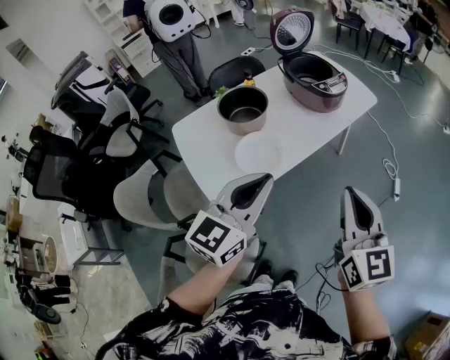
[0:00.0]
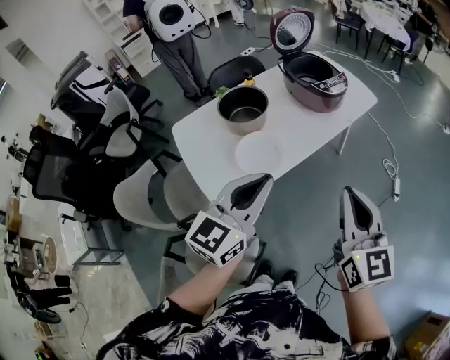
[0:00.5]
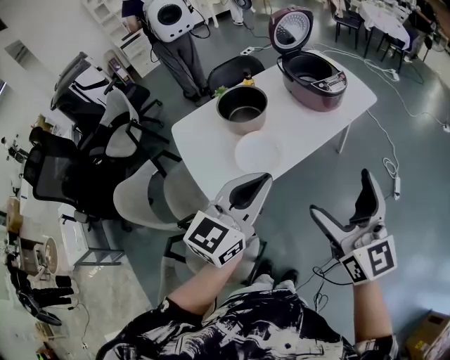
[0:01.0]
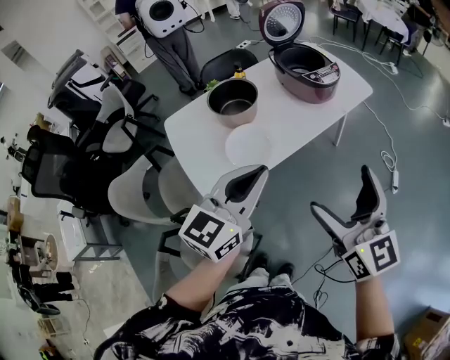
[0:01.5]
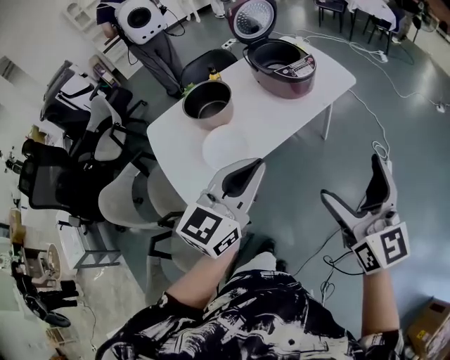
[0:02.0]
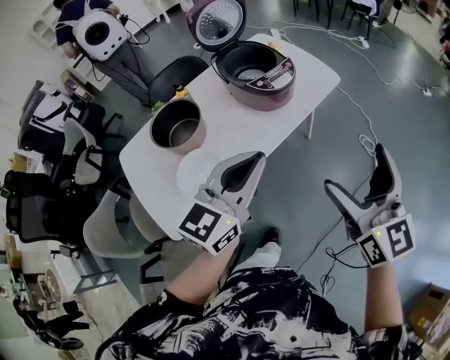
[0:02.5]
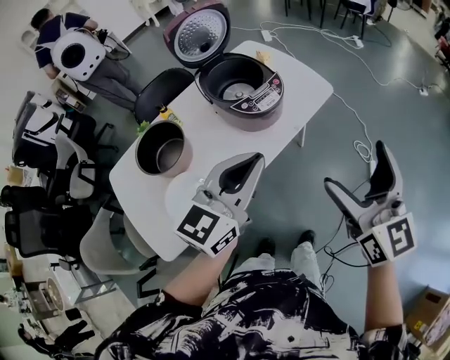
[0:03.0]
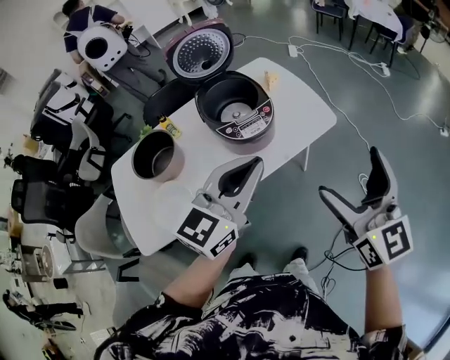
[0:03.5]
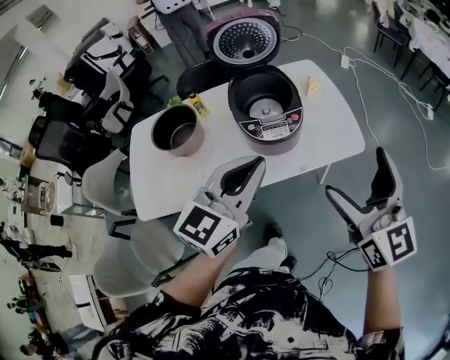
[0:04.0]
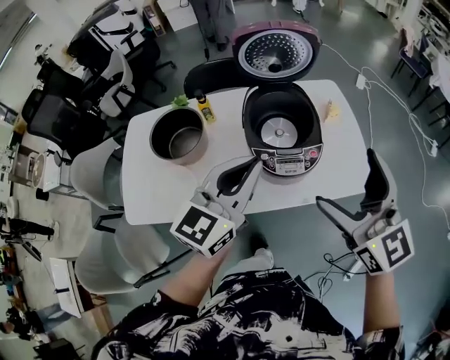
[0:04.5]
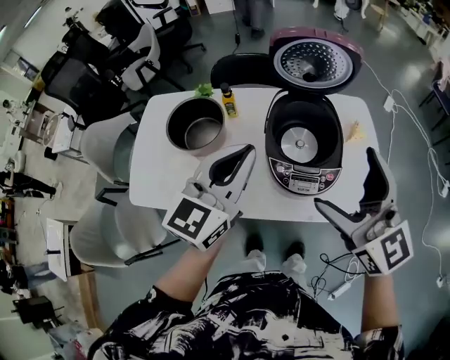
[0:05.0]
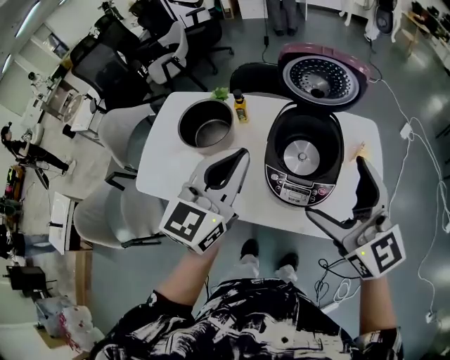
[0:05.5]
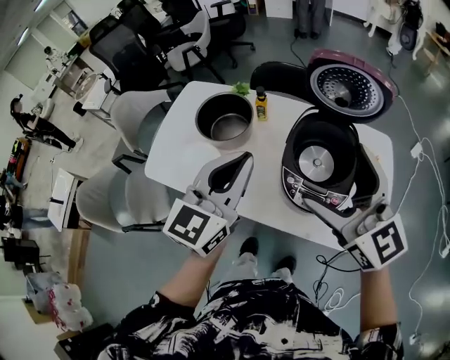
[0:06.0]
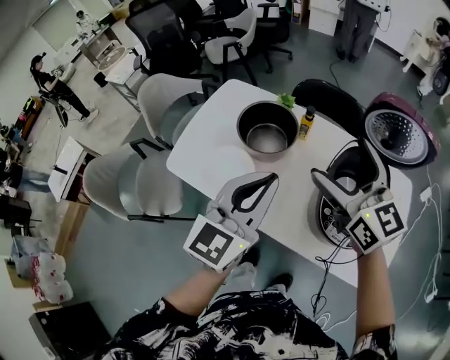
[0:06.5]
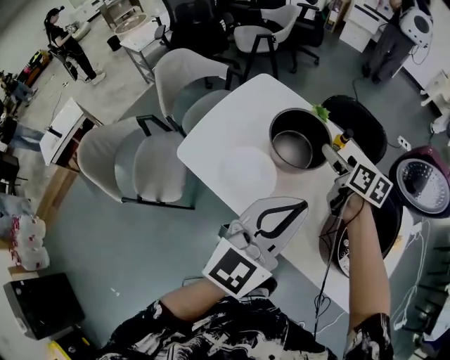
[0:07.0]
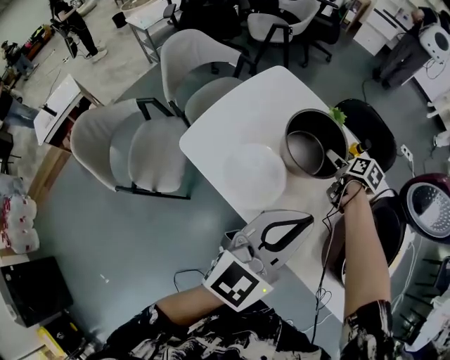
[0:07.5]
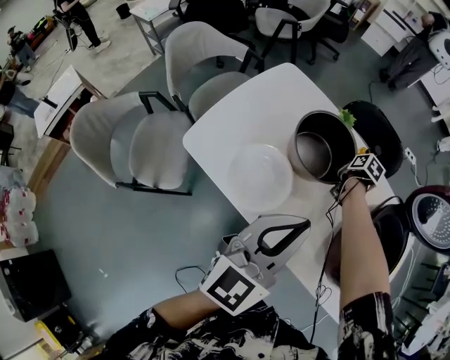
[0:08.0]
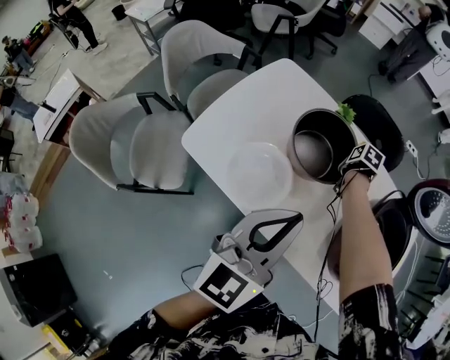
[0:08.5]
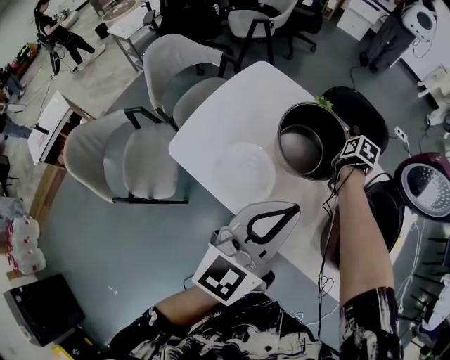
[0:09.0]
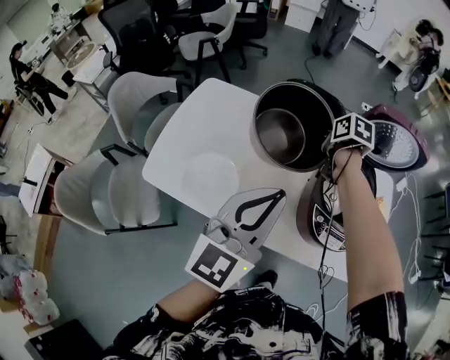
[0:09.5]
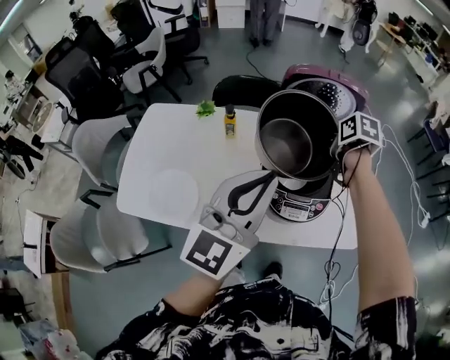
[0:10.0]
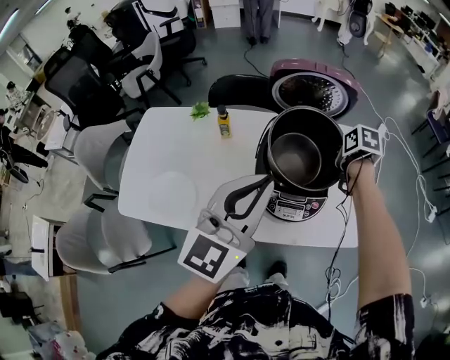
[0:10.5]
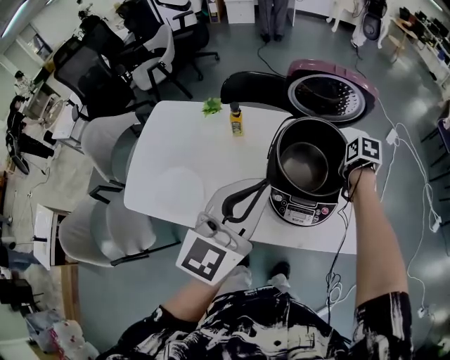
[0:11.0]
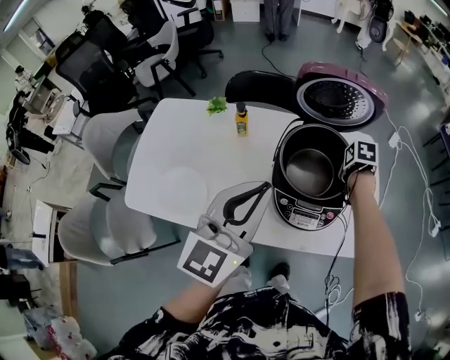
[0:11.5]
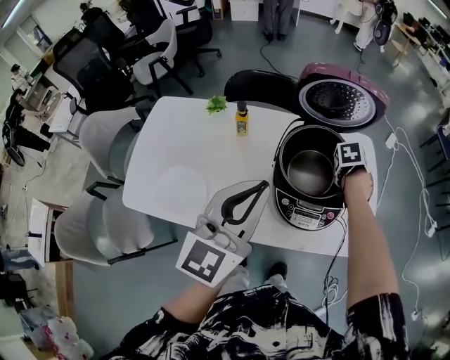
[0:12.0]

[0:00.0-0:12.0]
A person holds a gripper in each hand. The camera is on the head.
0:00.0 to 0:02.0: The two grippers go some 10 cm to the right. The right gripper opens its fingers.
0:02.0 to 0:04.0: The pair of grippers is taken approximately 40 cm. The left gripper turns by roughly 20 degrees; the right gripper changes its angle by about 20 degrees.
0:04.0 to 0:06.0: The left gripper moves roughly 20 cm, and swivels roughly 40 degrees. The right gripper changes place by roughly 30 cm, and swivels some 50 degrees.
0:06.0 to 0:08.0: The right gripper goes about 50 cm downward and forward, angles its fingers downward, by some 70 degrees, and closes its fingers, while the left gripper travels to the left and downward by roughly 20 cm.
0:08.0 to 0:10.0: The left gripper shifts some 25 cm to the right and upward, and turns by approximately 30 degrees. The right gripper travels to the right and upward by some 40 cm.
0:10.0 to 0:12.0: The right gripper travels downward by about 10 cm, and changes its angle by roughly 30 degrees.

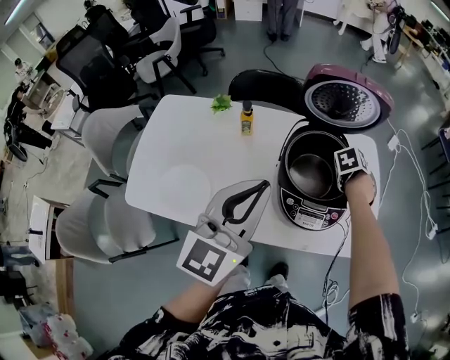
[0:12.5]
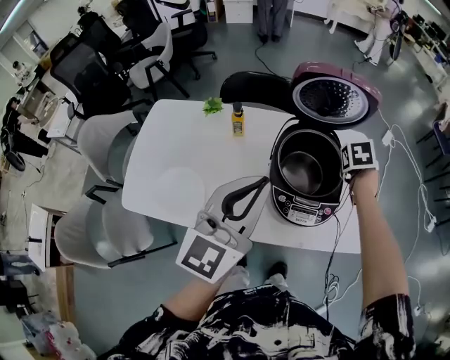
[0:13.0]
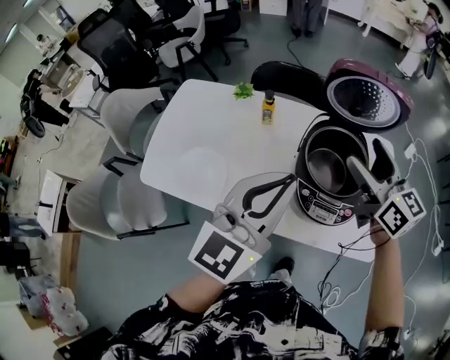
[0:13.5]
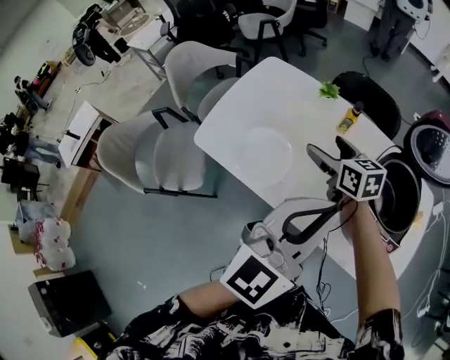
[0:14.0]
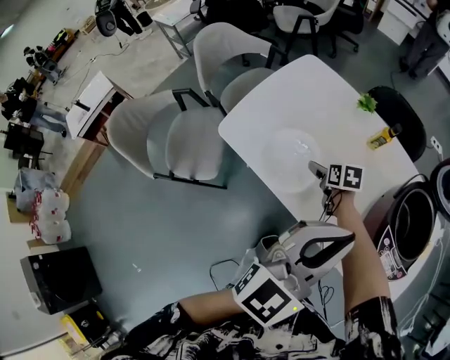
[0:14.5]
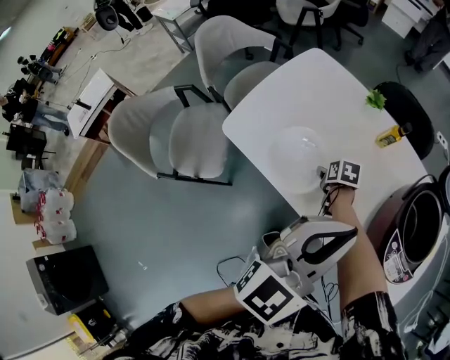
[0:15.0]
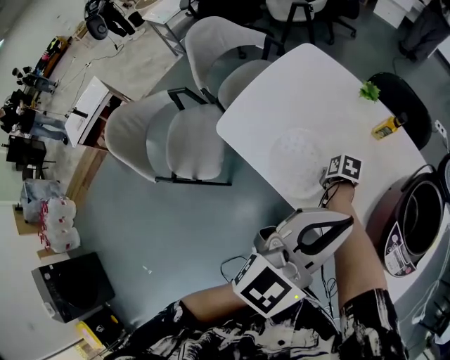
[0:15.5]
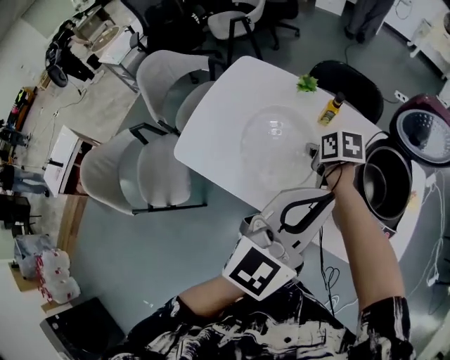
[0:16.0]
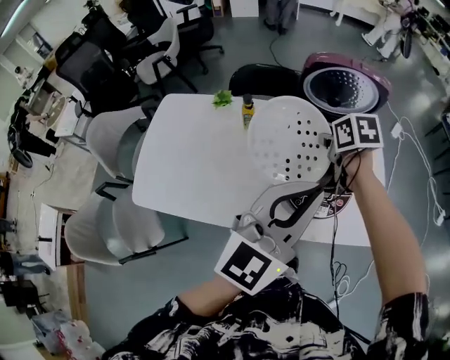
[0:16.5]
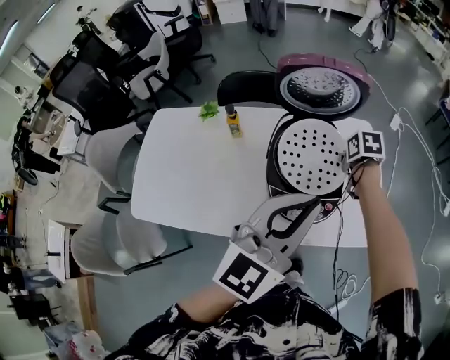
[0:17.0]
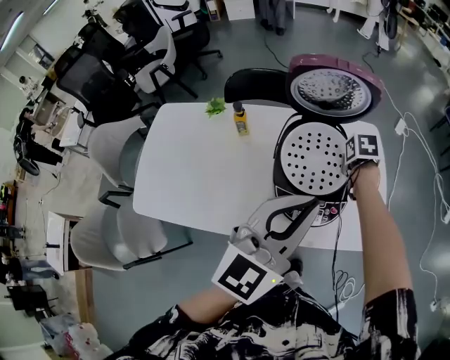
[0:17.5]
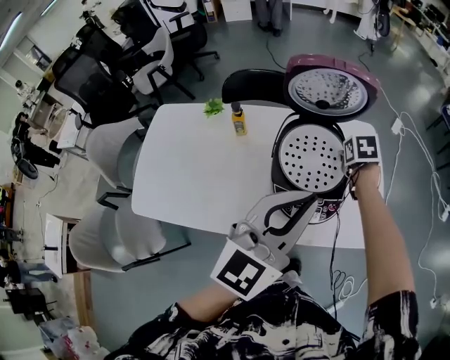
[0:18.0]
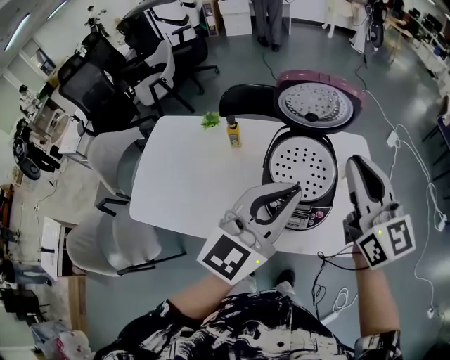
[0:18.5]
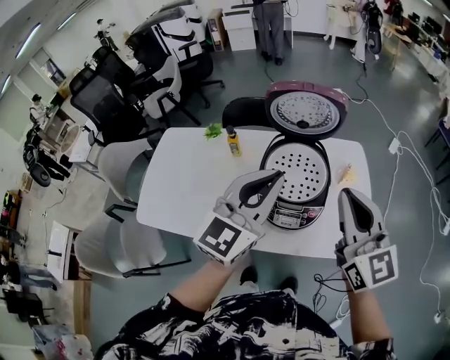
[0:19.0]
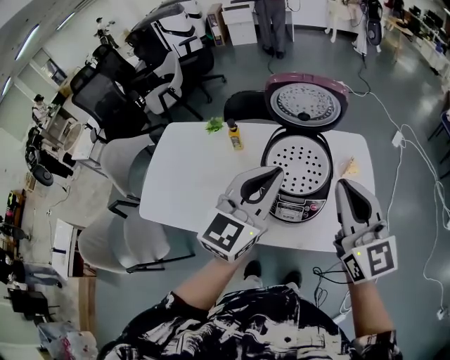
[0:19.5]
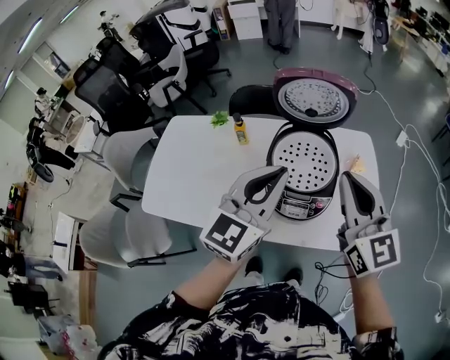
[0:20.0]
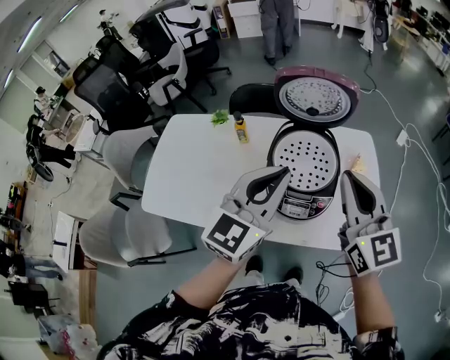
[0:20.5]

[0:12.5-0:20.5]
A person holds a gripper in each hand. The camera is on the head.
0:12.5 to 0:14.5: The left gripper shifts by about 15 cm; the right gripper goes upward and returns, about 25 cm each way, turns by approximately 50 degrees, and opens its fingers.
0:14.5 to 0:16.5: The right gripper changes place by approximately 40 cm, turns by some 30 degrees, and closes up. Meanwhile the left gripper shifts by some 20 cm, and swivels approximately 30 degrees.
0:16.5 to 0:18.5: The right gripper goes roughly 25 cm upward, to the right and backward, and angles its fingers upward, by approximately 60 degrees.
0:18.5 to 0:20.5: The right gripper moves some 5 cm.

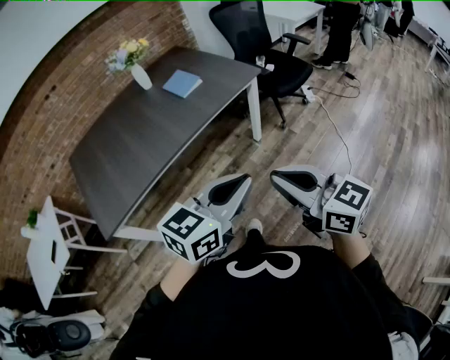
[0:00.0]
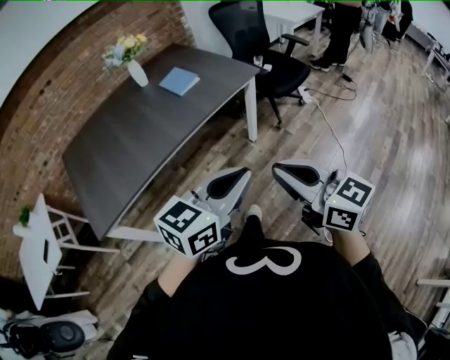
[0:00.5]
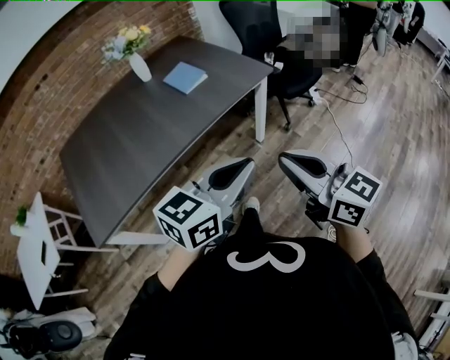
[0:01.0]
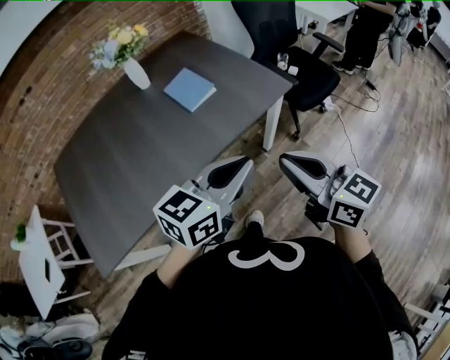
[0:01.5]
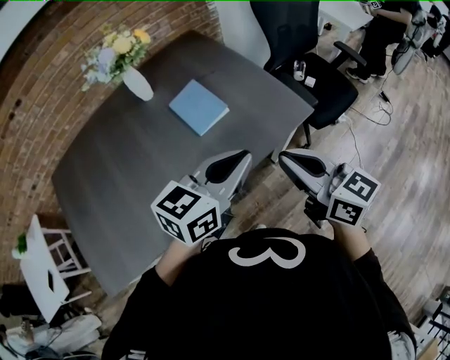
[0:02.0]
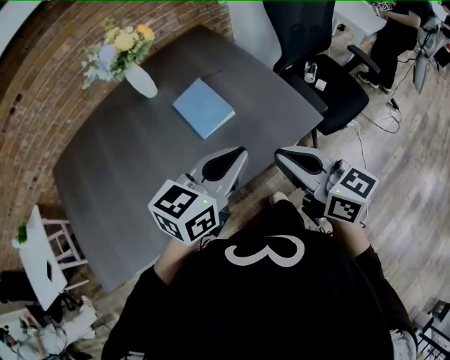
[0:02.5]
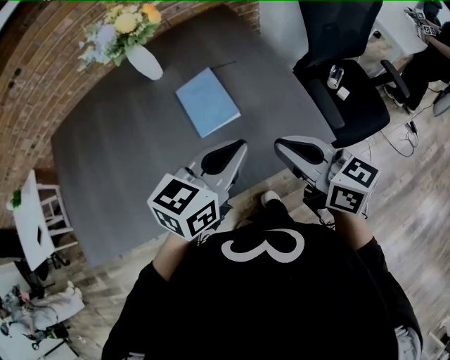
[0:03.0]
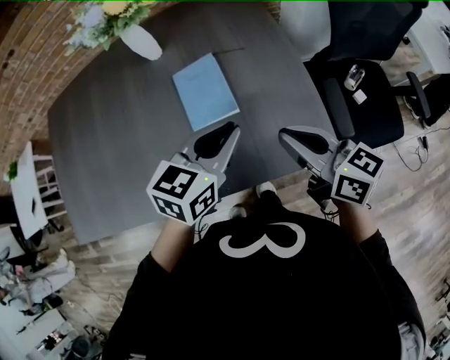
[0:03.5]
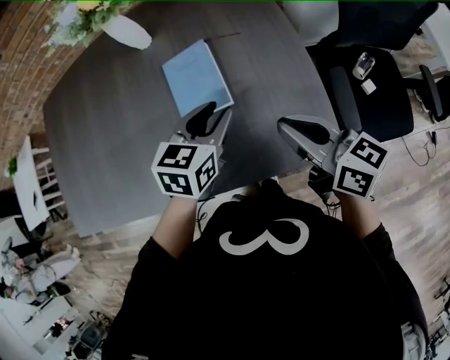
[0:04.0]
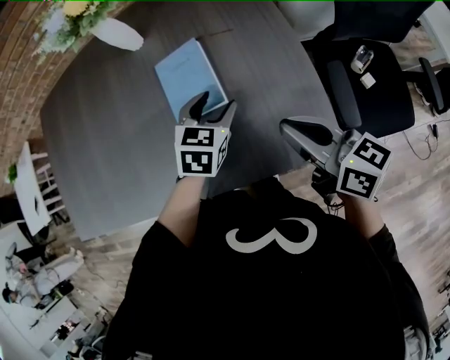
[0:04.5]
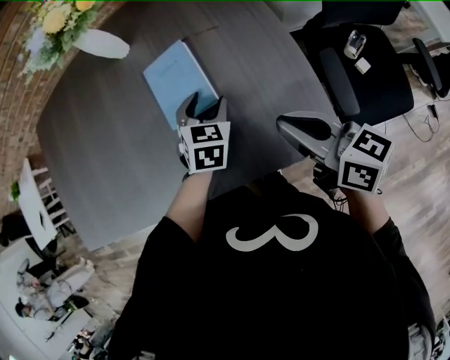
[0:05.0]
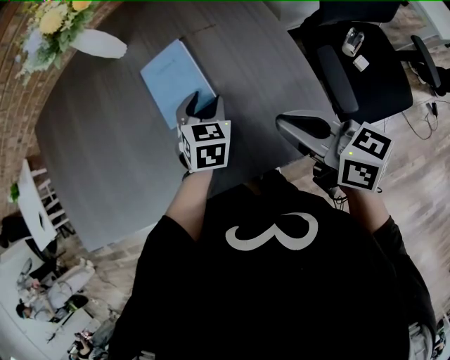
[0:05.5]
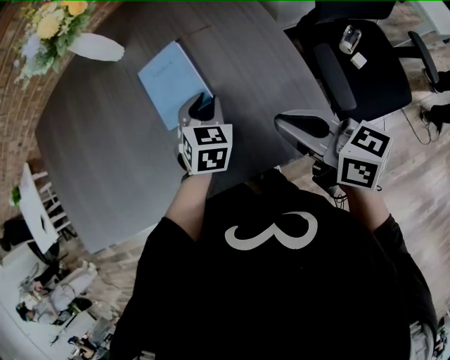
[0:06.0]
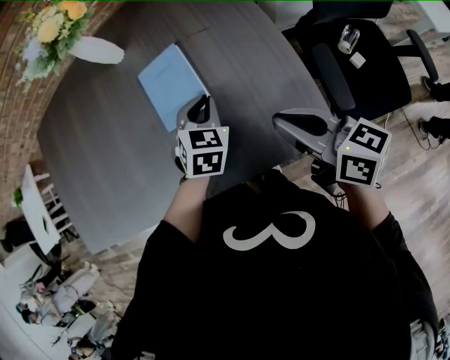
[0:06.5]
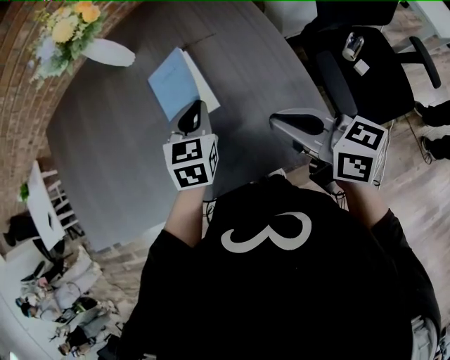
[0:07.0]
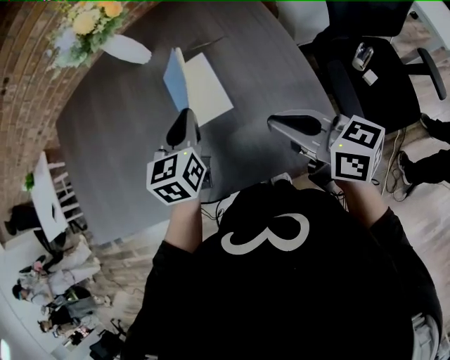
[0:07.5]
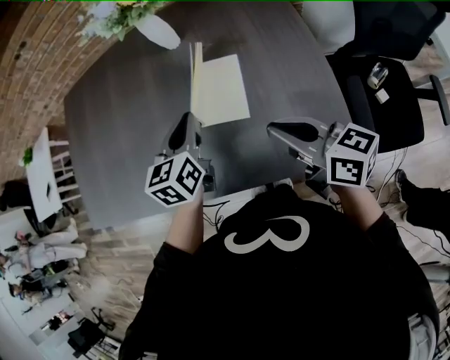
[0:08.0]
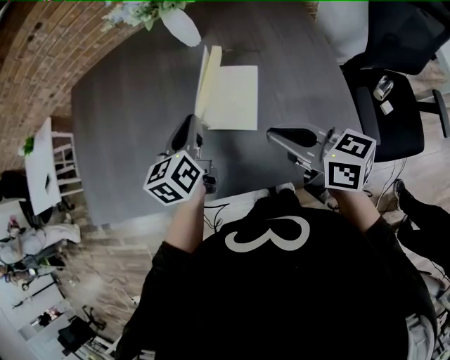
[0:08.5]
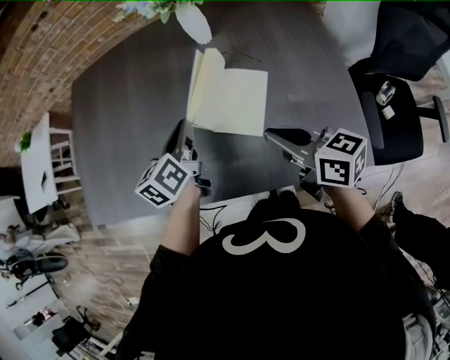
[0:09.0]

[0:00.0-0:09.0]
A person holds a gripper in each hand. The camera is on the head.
0:00.0 to 0:02.0: Both grippers are carried forward, some 50 cm.
0:02.0 to 0:04.5: The right gripper shifts by approximately 25 cm, and changes its angle by about 30 degrees. Meanwhile the left gripper shifts by approximately 35 cm, changes its angle by approximately 50 degrees, and opens.
0:04.5 to 0:07.0: The left gripper closes its fingers.
0:07.0 to 0:09.0: The left gripper shifts about 25 cm to the left, and twists some 50 degrees counterclockwise, seen from behind. The right gripper is displaced to the left and forward by roughly 20 cm.
